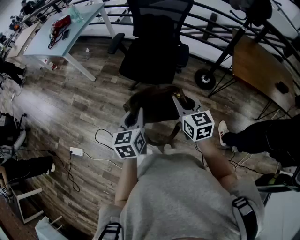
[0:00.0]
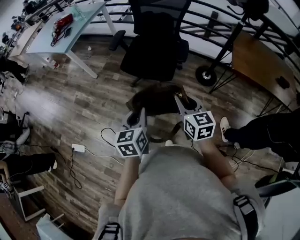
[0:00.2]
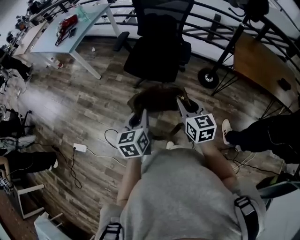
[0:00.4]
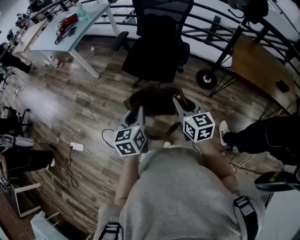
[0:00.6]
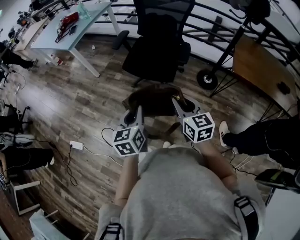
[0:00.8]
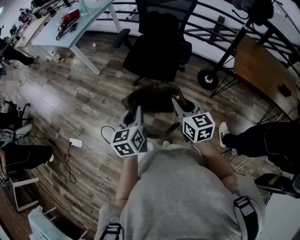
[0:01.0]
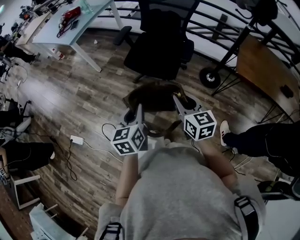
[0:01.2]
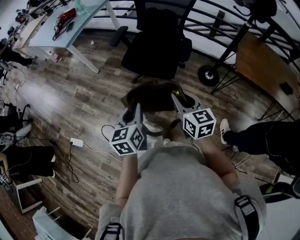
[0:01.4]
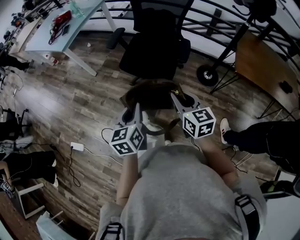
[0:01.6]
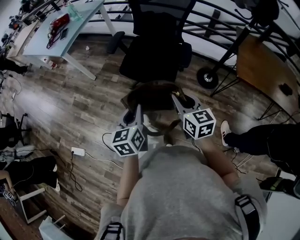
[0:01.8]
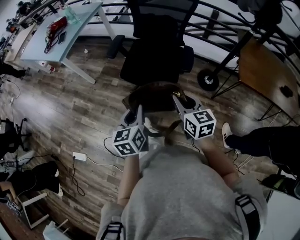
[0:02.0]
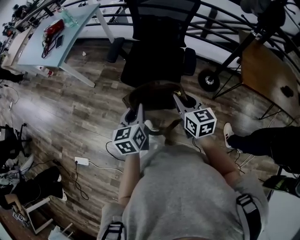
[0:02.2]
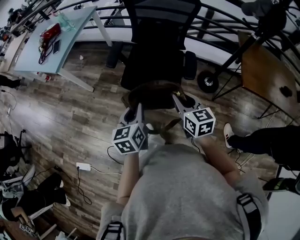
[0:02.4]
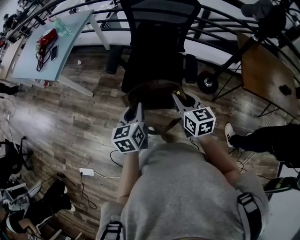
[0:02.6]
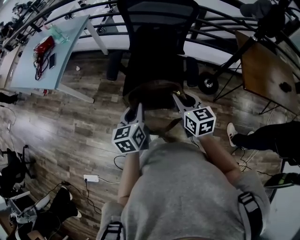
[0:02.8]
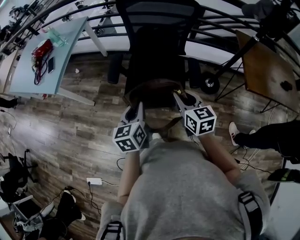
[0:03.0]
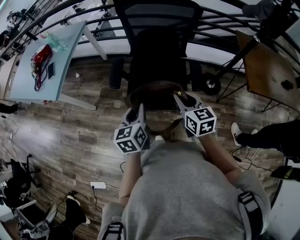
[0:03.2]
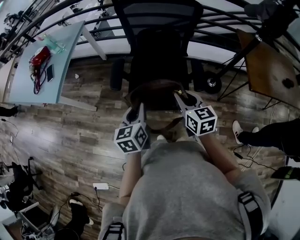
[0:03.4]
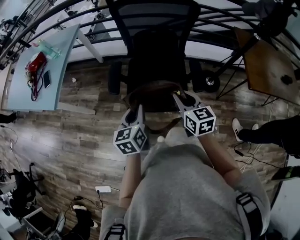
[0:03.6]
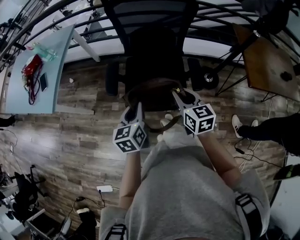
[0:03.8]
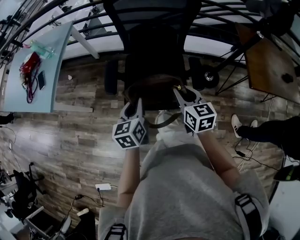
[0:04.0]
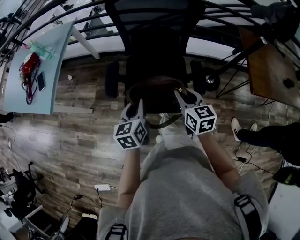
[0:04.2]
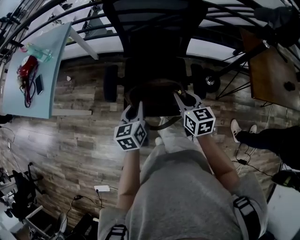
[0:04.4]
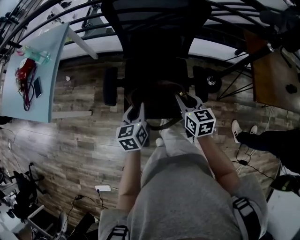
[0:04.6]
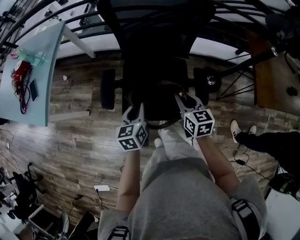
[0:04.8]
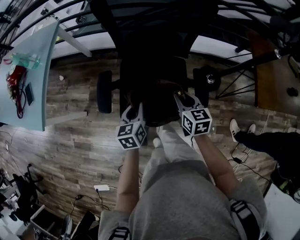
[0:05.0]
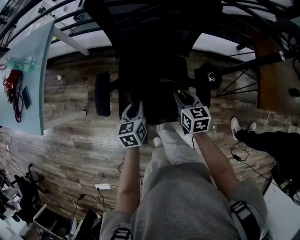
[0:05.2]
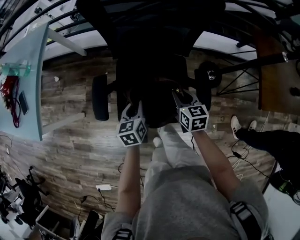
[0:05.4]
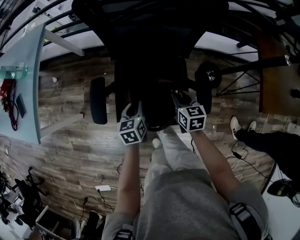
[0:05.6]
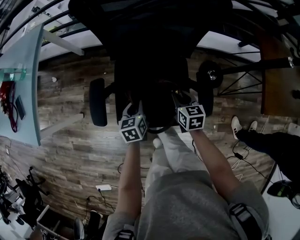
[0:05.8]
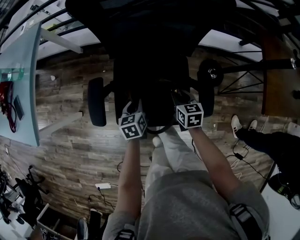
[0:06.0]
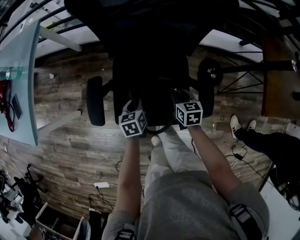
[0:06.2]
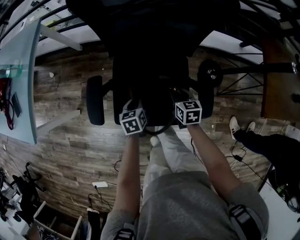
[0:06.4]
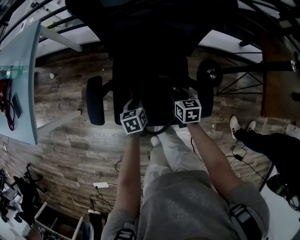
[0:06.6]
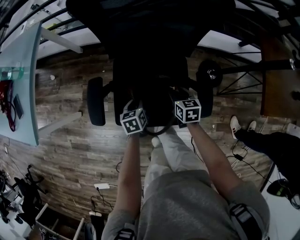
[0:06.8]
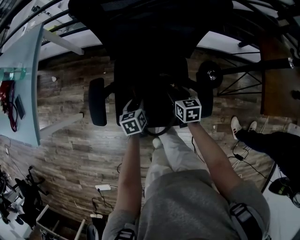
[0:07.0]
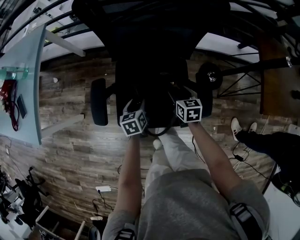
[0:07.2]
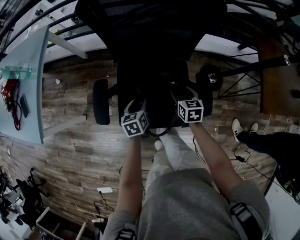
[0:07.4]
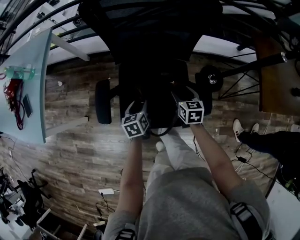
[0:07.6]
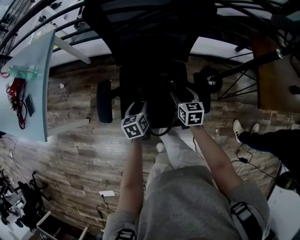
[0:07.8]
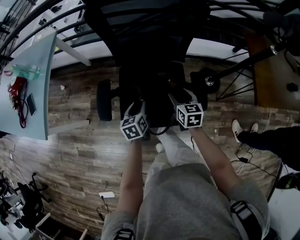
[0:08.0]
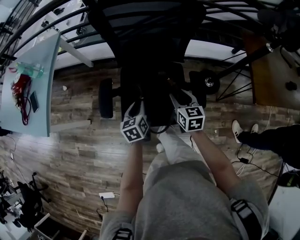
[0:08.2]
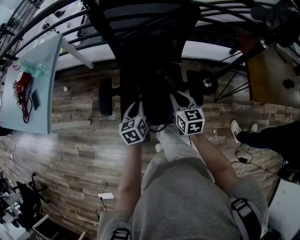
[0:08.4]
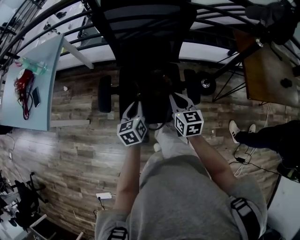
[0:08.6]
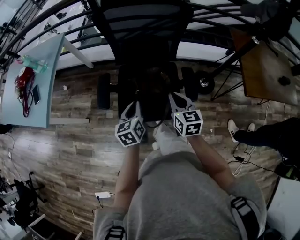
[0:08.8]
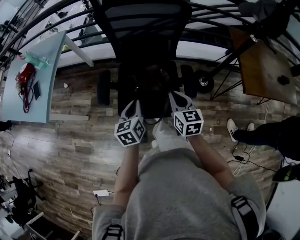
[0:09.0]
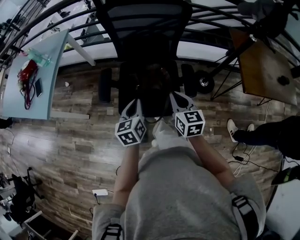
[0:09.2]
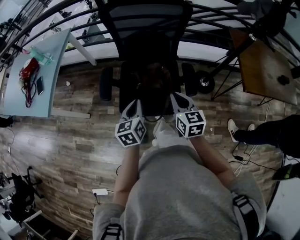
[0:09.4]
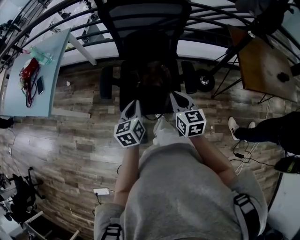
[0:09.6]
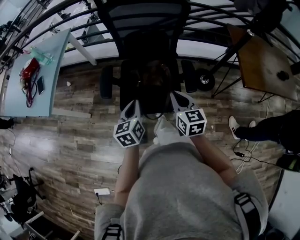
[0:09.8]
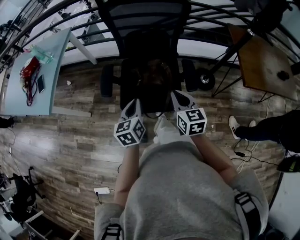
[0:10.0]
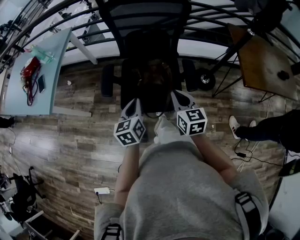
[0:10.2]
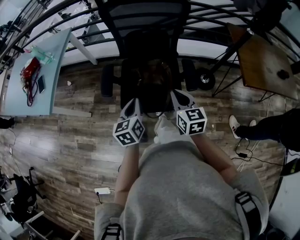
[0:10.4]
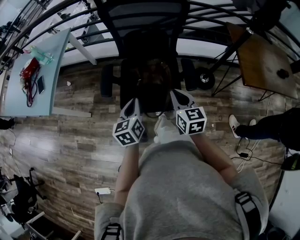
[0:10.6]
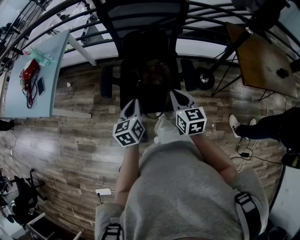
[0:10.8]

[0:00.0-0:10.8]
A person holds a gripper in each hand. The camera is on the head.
0:00.0 to 0:01.6: The grippers make only small movements.
0:01.6 to 0:03.0: The grippers both shift forward by some 30 cm.
0:03.0 to 0:04.6: The two grippers go approximately 20 cm forward and downward.
0:04.6 to 0:06.2: The grippers both shift downward and forward by roughly 25 cm.
0:06.2 to 0:07.8: The two grippers go roughly 5 cm upward. The right gripper opens its fingers; the left gripper opens up.
0:07.8 to 0:09.2: Both grippers move upward and backward, approximately 25 cm. The left gripper closes, while the right gripper closes its fingers.
0:09.2 to 0:10.8: The grippers move only a little.

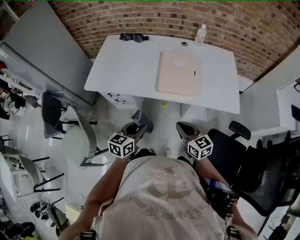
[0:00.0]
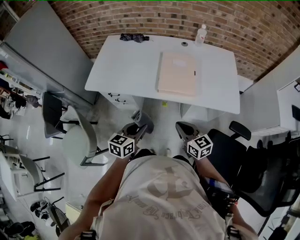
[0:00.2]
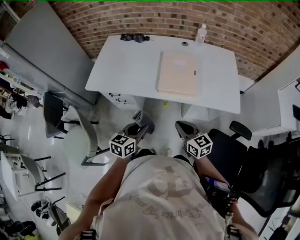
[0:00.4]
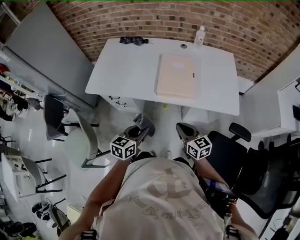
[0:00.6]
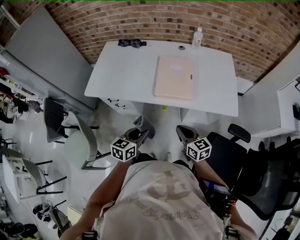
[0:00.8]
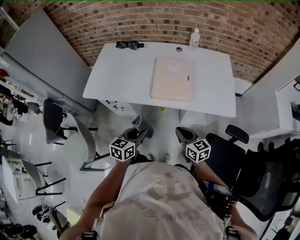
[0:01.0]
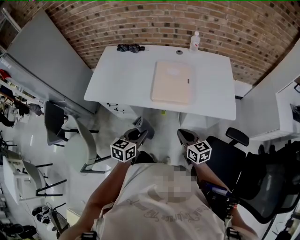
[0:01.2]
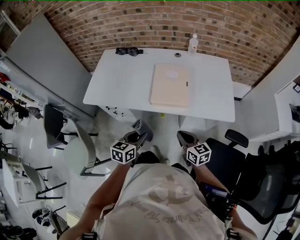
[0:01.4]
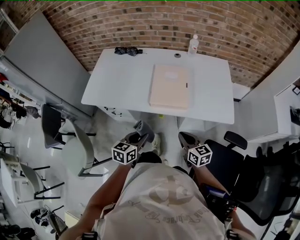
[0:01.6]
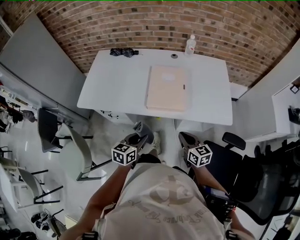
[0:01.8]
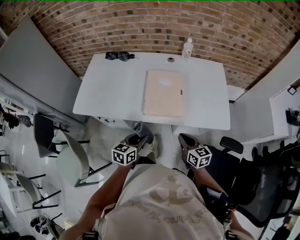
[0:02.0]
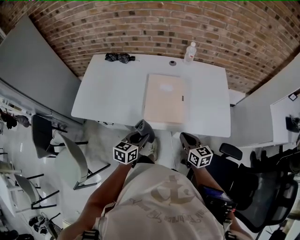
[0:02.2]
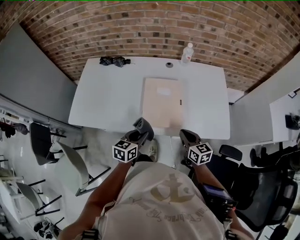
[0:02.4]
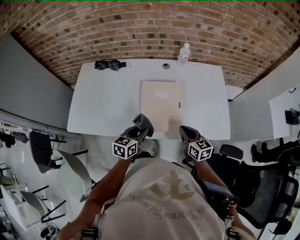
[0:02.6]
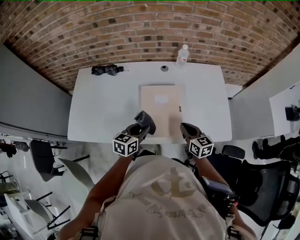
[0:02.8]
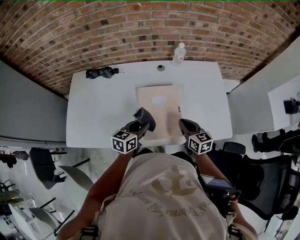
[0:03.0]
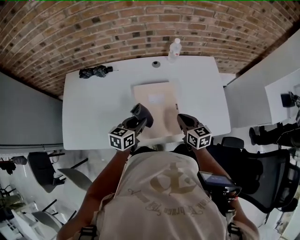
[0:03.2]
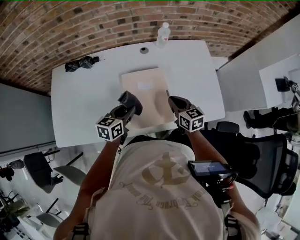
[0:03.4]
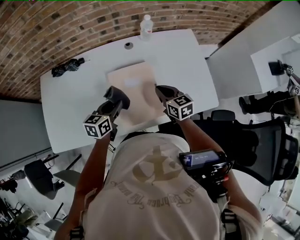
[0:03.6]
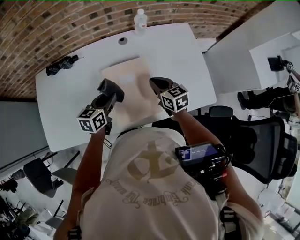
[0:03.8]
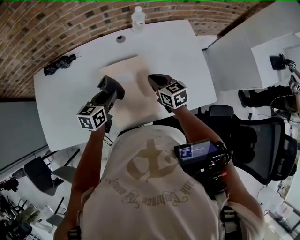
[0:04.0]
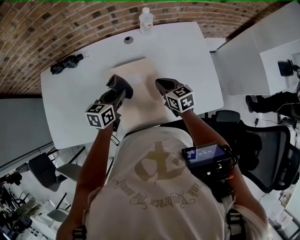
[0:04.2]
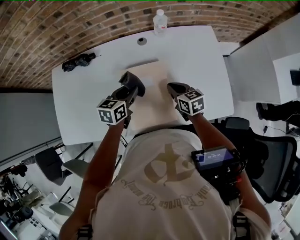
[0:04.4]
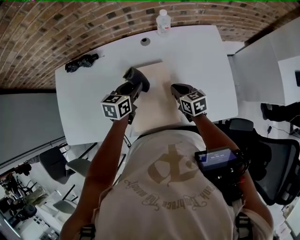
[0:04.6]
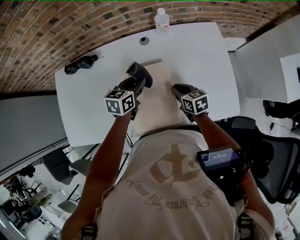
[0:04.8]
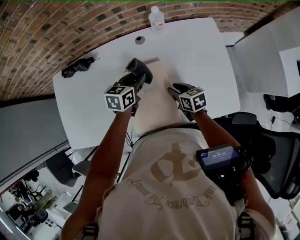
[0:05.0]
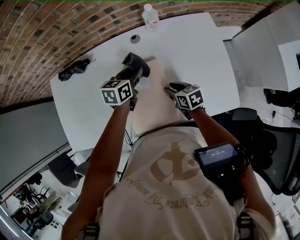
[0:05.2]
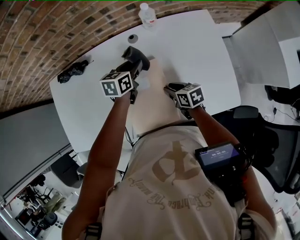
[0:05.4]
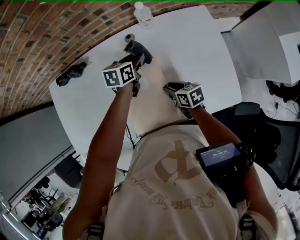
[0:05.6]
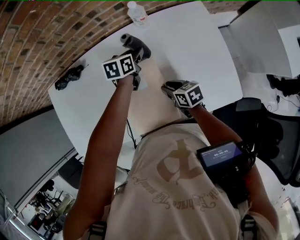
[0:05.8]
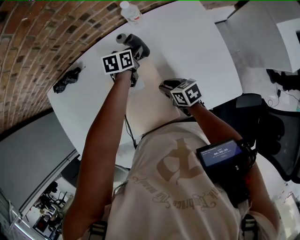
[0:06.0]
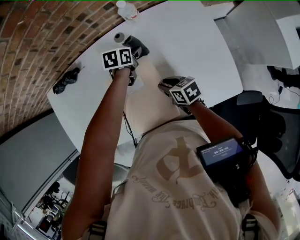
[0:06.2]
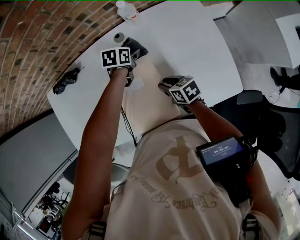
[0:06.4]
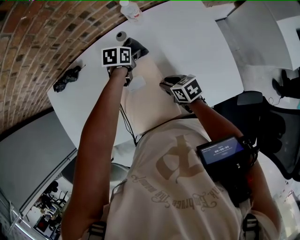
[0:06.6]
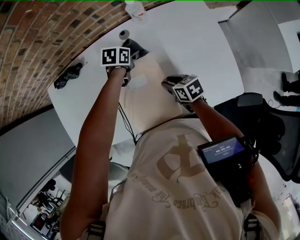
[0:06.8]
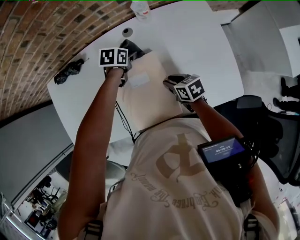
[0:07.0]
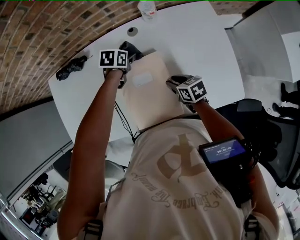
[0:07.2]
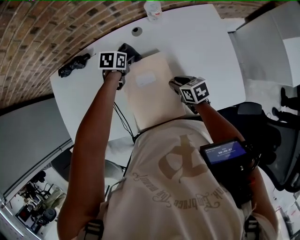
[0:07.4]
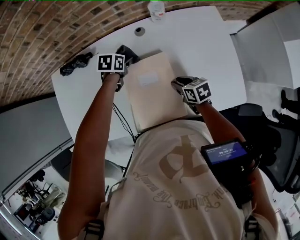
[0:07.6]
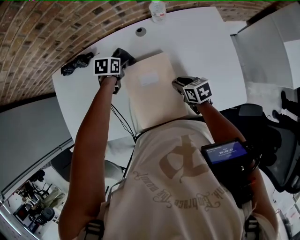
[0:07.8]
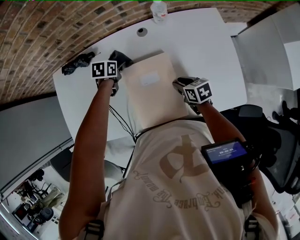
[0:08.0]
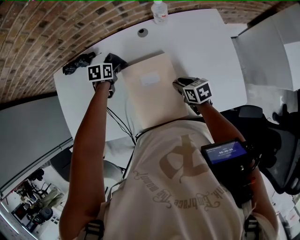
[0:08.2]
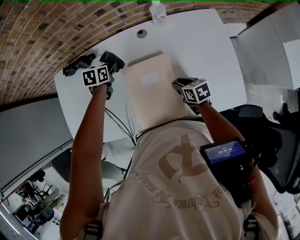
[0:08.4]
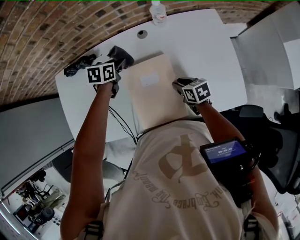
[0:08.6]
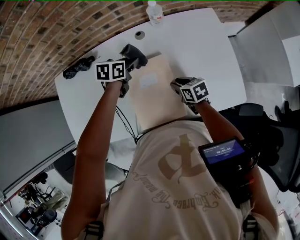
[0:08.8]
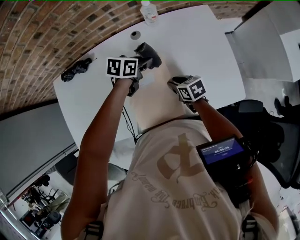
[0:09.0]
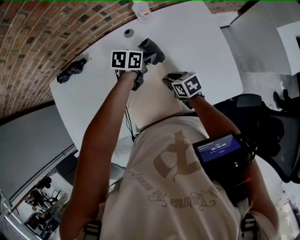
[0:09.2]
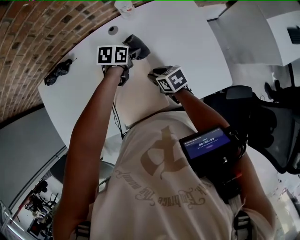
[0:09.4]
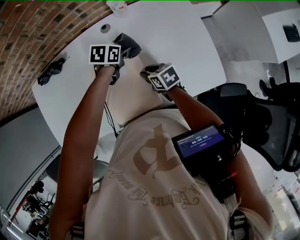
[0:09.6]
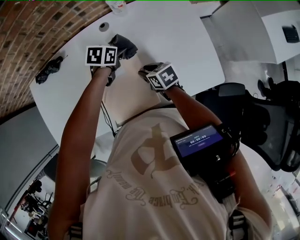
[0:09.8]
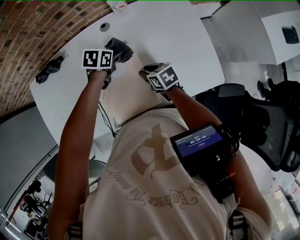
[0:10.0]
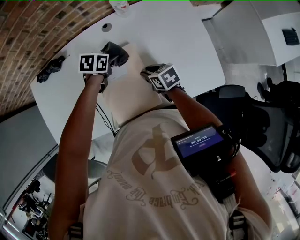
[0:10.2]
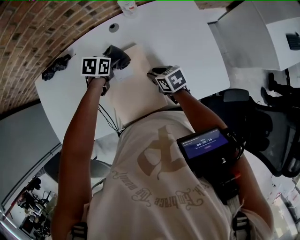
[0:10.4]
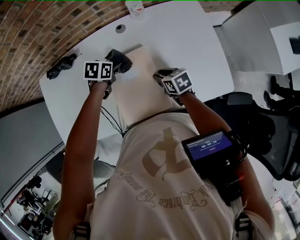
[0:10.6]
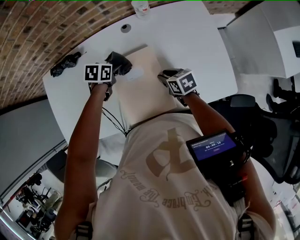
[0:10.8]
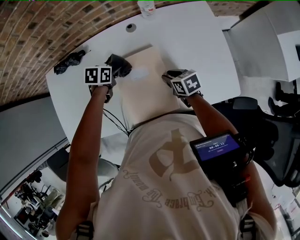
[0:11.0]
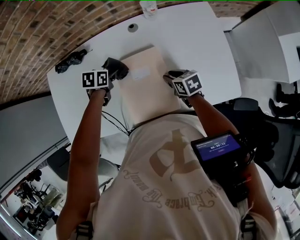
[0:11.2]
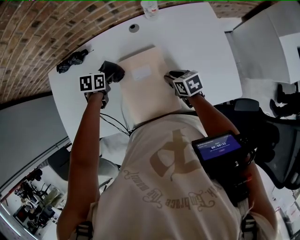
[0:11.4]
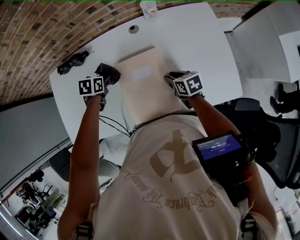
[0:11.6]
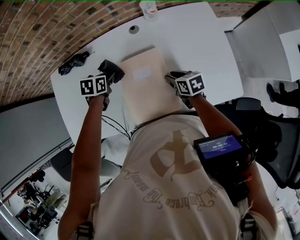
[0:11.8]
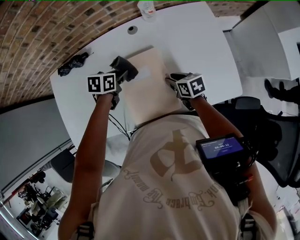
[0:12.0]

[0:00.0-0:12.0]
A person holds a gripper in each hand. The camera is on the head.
0:00.0 to 0:01.6: The grippers both shift to the right by about 5 cm.
0:01.6 to 0:03.0: Both grippers travel together forward, about 30 cm.
0:03.0 to 0:04.4: The left gripper goes approximately 10 cm forward. Meanwhile the right gripper moves forward and downward, roughly 10 cm.
0:04.4 to 0:06.0: The right gripper is displaced downward by some 5 cm, turns by approximately 20 degrees, and opens up. Meanwhile the left gripper goes some 25 cm forward, to the right and downward.
0:06.0 to 0:07.6: The left gripper goes approximately 15 cm to the left.
0:07.6 to 0:09.0: The left gripper shifts approximately 15 cm to the right and upward.
0:09.0 to 0:10.4: The left gripper shifts some 5 cm to the left.
0:10.4 to 0:12.0: The left gripper moves roughly 15 cm to the left and comes back.

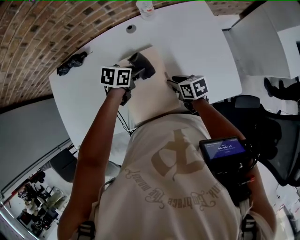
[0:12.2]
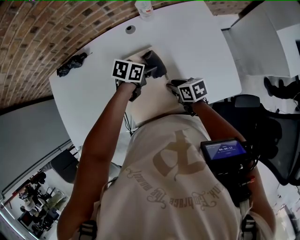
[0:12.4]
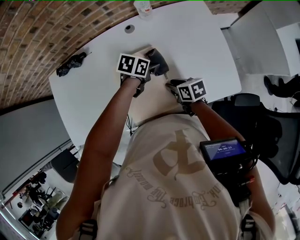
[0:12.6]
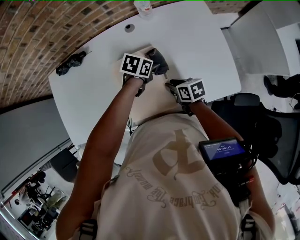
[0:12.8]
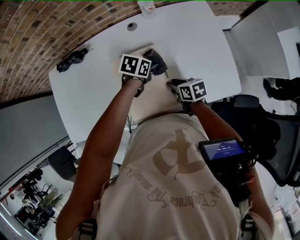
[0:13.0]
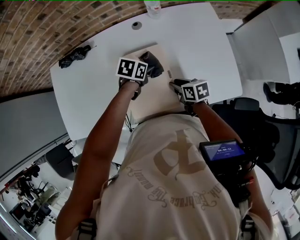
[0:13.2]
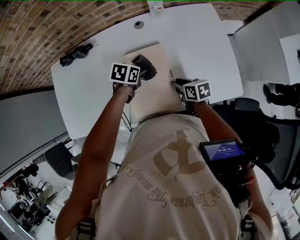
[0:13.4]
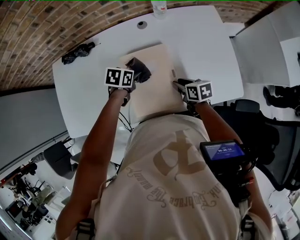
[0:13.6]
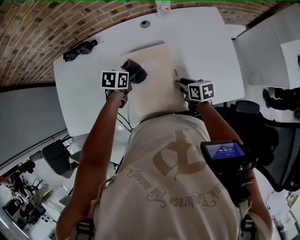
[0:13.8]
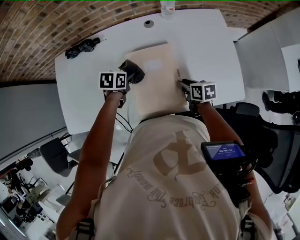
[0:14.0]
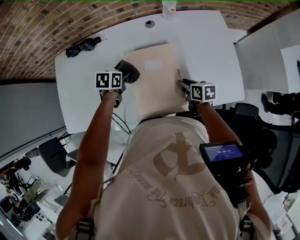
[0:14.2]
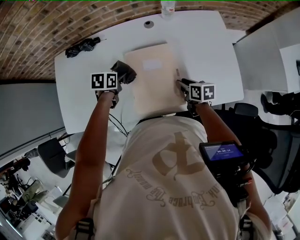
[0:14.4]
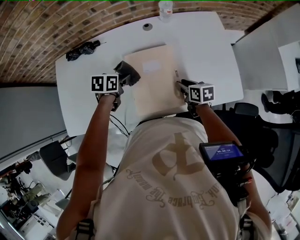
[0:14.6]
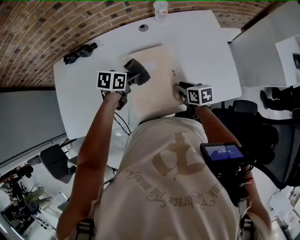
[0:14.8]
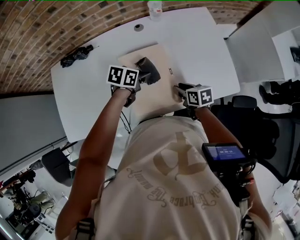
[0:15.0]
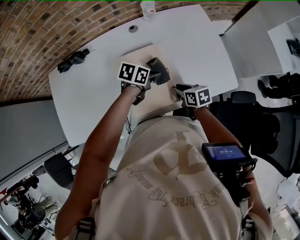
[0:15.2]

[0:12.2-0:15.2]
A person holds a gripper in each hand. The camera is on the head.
0:12.2 to 0:13.8: The left gripper moves about 10 cm.
0:13.8 to 0:15.2: The left gripper shifts by approximately 15 cm, and swivels roughly 20 degrees.
